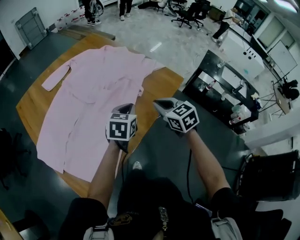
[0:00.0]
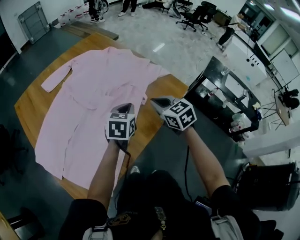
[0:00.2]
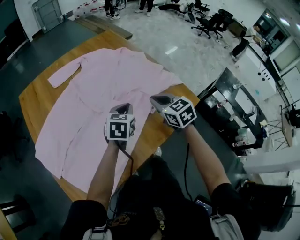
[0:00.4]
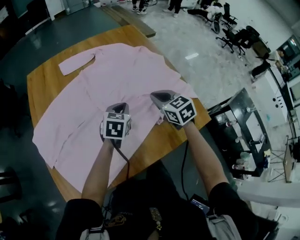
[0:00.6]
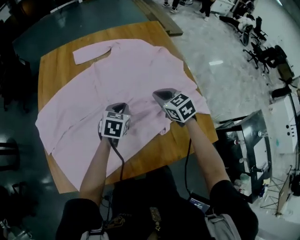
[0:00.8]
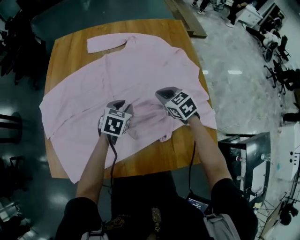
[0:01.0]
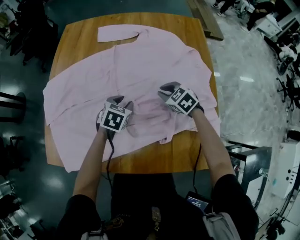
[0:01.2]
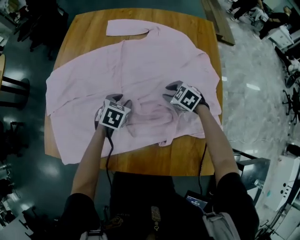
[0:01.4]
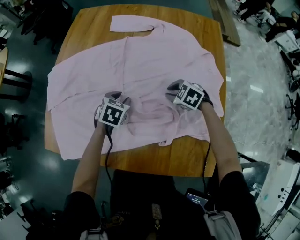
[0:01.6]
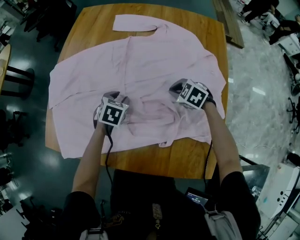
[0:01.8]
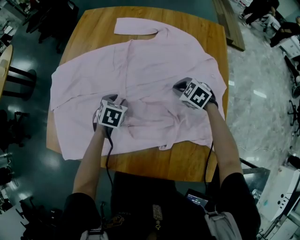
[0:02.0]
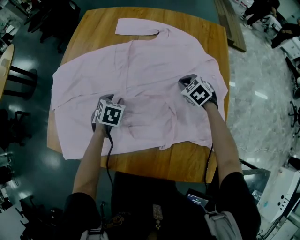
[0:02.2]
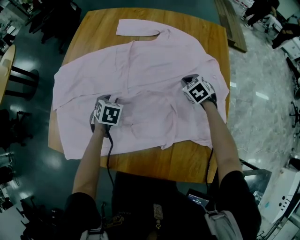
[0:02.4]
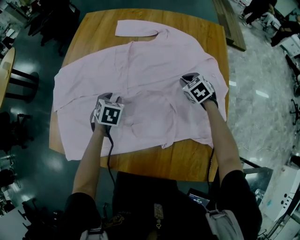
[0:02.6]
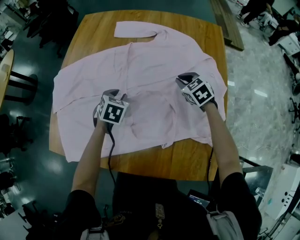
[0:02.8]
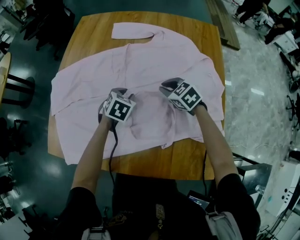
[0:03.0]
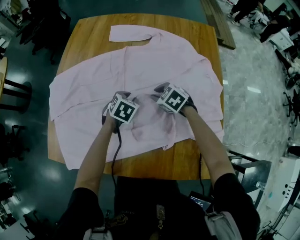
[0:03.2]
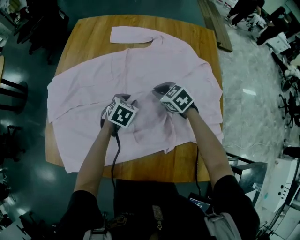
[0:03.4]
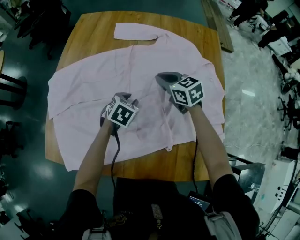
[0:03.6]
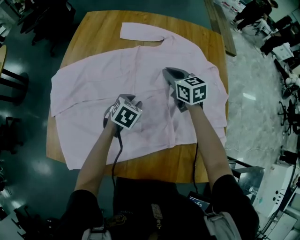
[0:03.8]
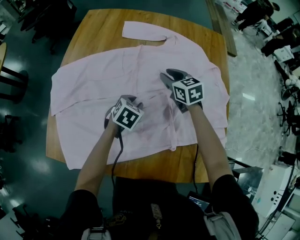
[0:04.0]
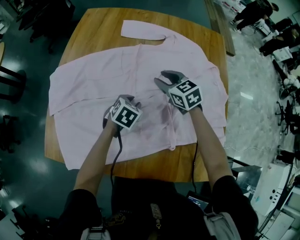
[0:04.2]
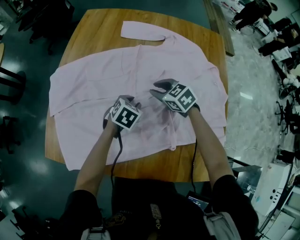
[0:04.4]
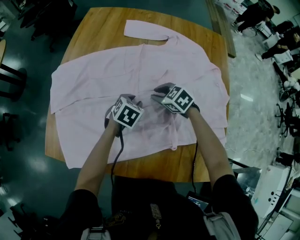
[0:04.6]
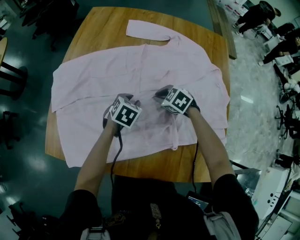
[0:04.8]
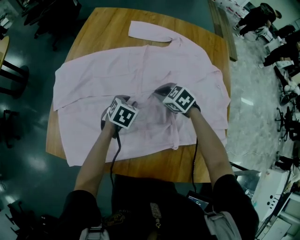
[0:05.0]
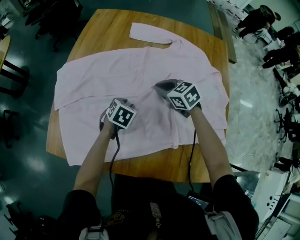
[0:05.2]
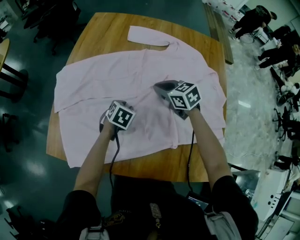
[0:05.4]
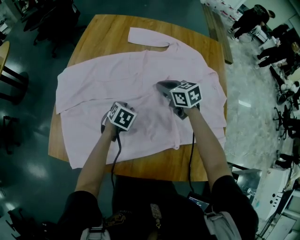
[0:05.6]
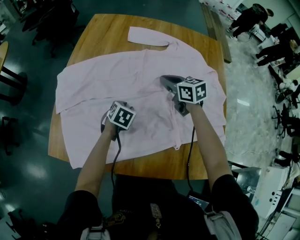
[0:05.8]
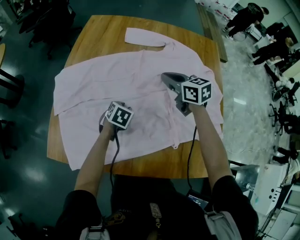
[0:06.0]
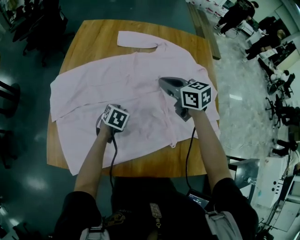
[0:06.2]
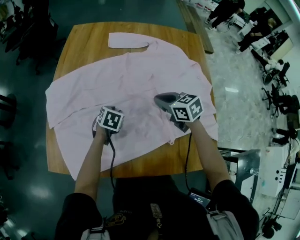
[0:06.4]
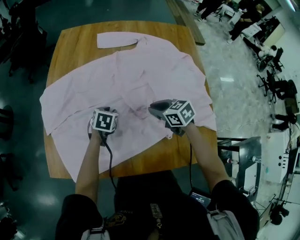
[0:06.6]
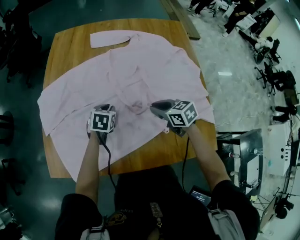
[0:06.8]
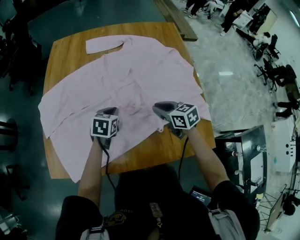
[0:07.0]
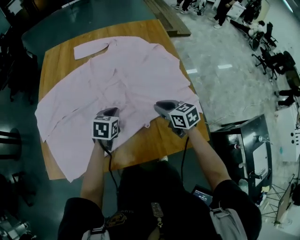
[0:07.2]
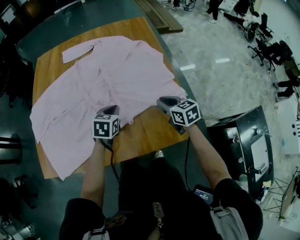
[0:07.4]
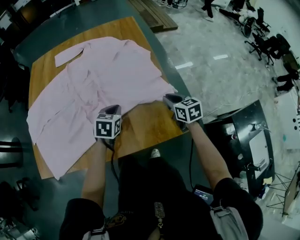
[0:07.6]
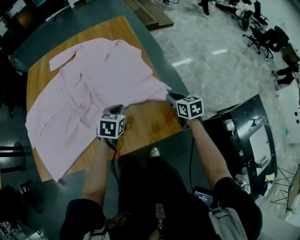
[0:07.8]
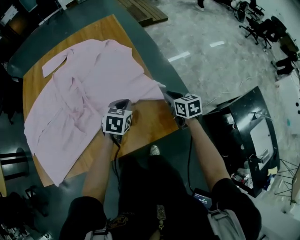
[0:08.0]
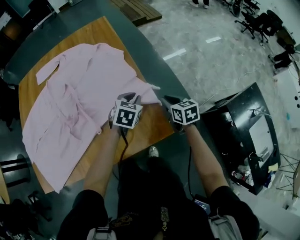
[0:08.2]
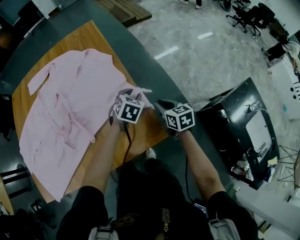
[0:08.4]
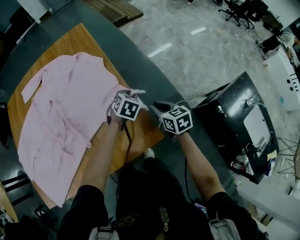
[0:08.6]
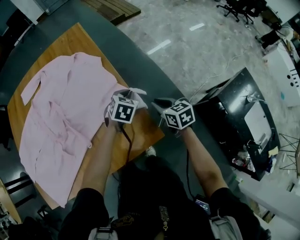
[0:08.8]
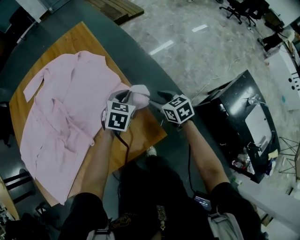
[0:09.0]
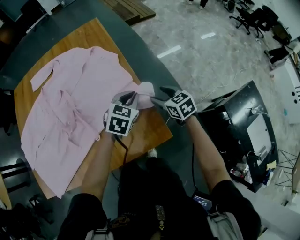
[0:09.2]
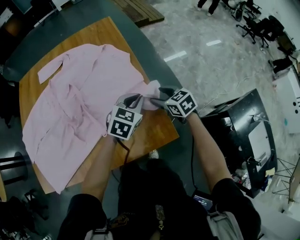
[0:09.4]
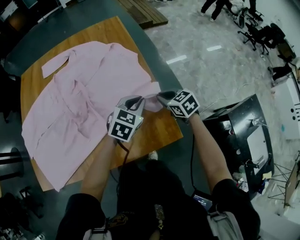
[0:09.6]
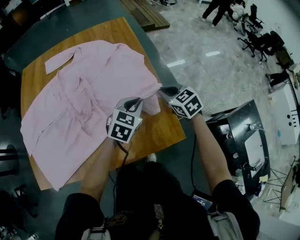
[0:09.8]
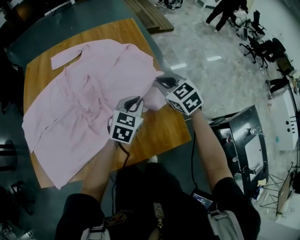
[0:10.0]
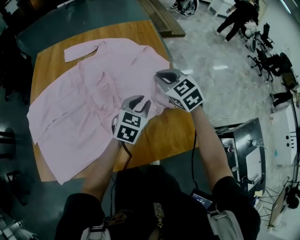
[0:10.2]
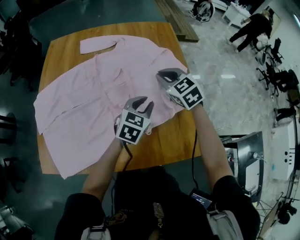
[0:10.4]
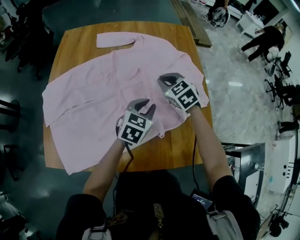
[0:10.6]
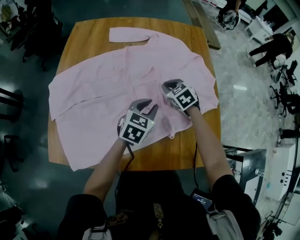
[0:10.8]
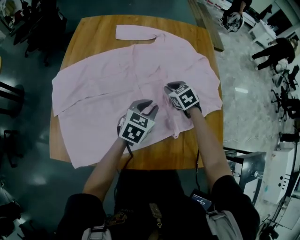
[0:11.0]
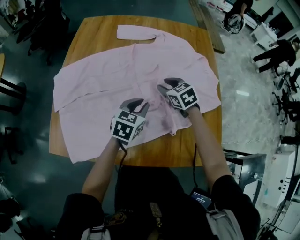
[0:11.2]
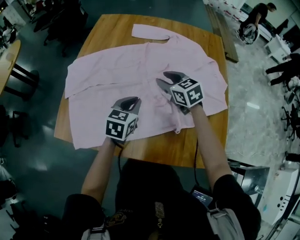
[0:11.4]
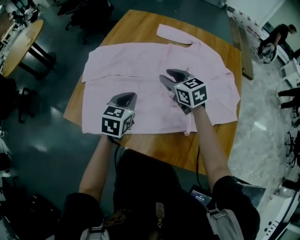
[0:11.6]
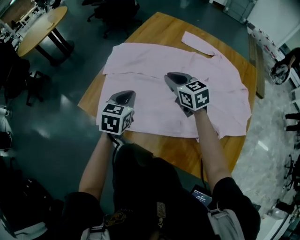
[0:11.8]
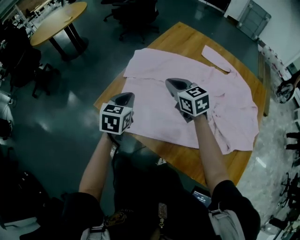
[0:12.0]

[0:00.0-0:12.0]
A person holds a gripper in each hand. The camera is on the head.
0:00.0 to 0:01.6: The left gripper ends up approximately 30 cm from where it was, rotates roughly 60 degrees, and opens its fingers, while the right gripper ends up some 40 cm from where it was, swivels roughly 90 degrees, and opens its fingers.
0:01.6 to 0:03.0: The right gripper moves upward, approximately 5 cm, moves roughly 10 cm to the right and comes back, and swivels roughly 20 degrees; the left gripper travels to the left and back again, some 5 cm each way.
0:03.0 to 0:04.4: The right gripper is displaced to the left by about 10 cm, and goes forward and returns, approximately 10 cm each way.
0:04.4 to 0:06.0: The left gripper shifts about 5 cm to the left, while the right gripper moves upward, some 10 cm, changes its angle by about 30 degrees, and closes its fingers.
0:06.0 to 0:07.6: Both grippers travel together to the right and backward, some 40 cm. The left gripper closes its fingers. Meanwhile the right gripper rotates approximately 30 degrees.
0:07.6 to 0:09.0: The right gripper travels to the right by roughly 15 cm, and opens up. The left gripper heads to the right, covering roughly 25 cm, rotates approximately 30 degrees, and opens and closes again.
0:09.0 to 0:10.4: The left gripper heads to the left, covering roughly 30 cm, and swivels some 20 degrees. Meanwhile the right gripper travels to the left and upward by about 40 cm, rolls counterclockwise, seen from behind, by some 40 degrees, and closes its fingers.
0:10.4 to 0:12.0: The two grippers travel together, approximately 50 cm. The right gripper changes its angle by about 40 degrees, and opens, then closes again; the left gripper swivels approximately 60 degrees.

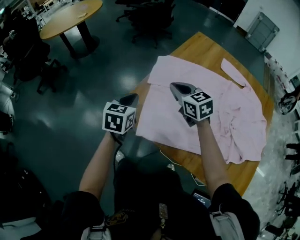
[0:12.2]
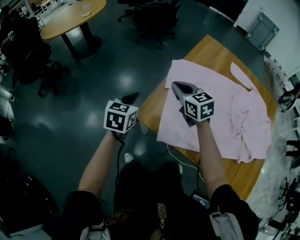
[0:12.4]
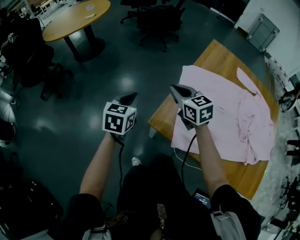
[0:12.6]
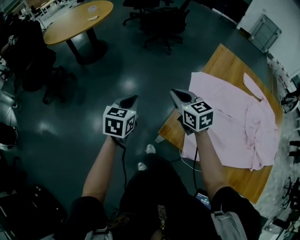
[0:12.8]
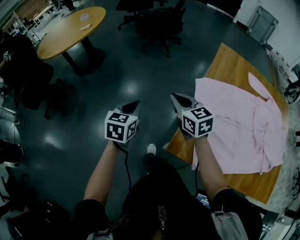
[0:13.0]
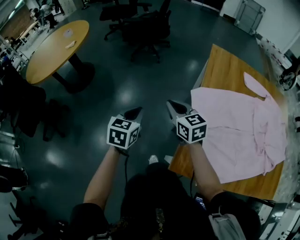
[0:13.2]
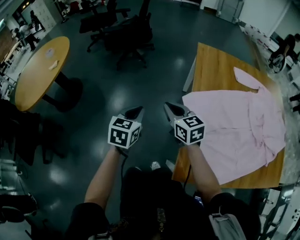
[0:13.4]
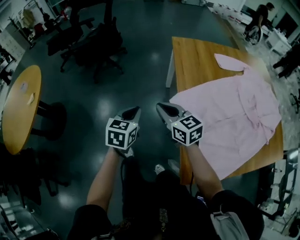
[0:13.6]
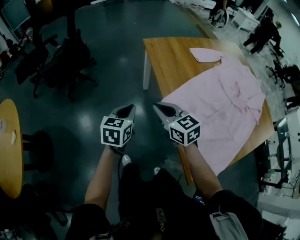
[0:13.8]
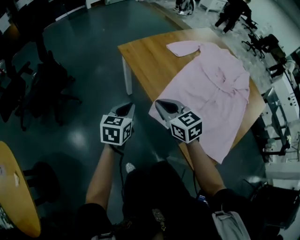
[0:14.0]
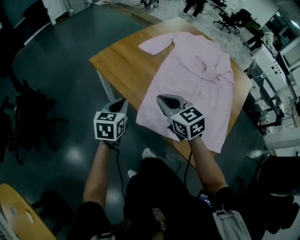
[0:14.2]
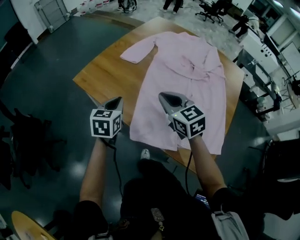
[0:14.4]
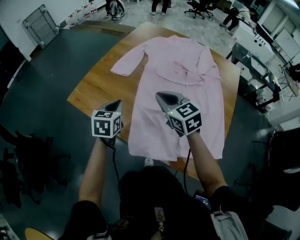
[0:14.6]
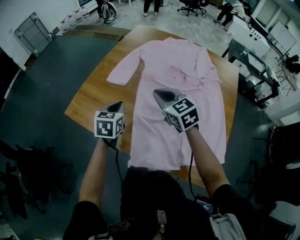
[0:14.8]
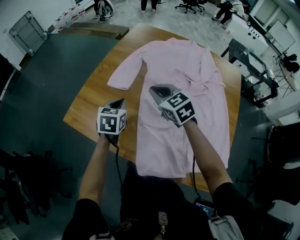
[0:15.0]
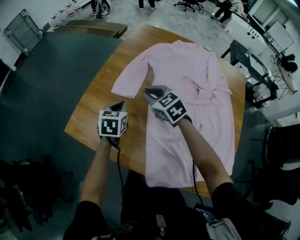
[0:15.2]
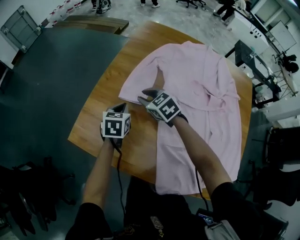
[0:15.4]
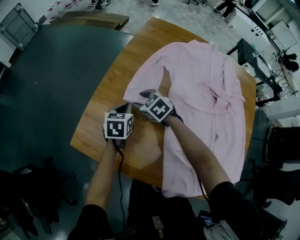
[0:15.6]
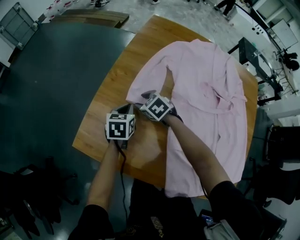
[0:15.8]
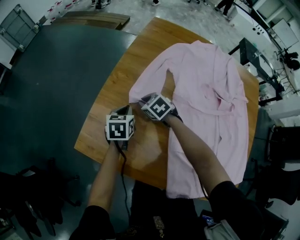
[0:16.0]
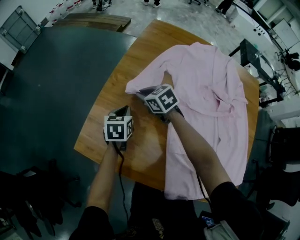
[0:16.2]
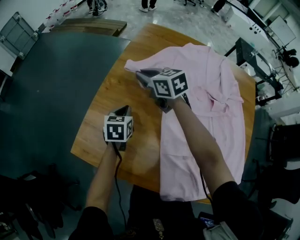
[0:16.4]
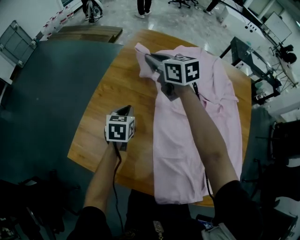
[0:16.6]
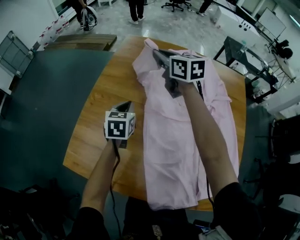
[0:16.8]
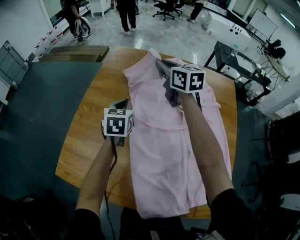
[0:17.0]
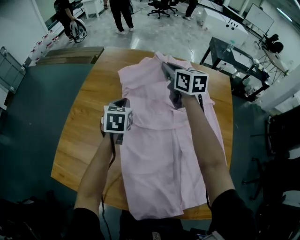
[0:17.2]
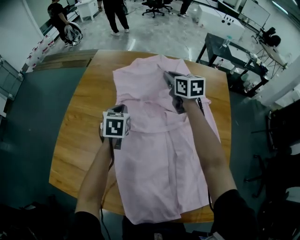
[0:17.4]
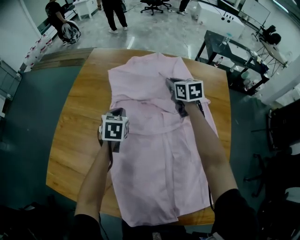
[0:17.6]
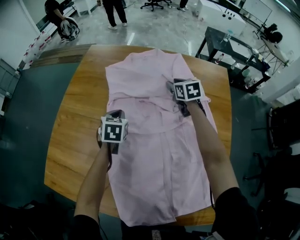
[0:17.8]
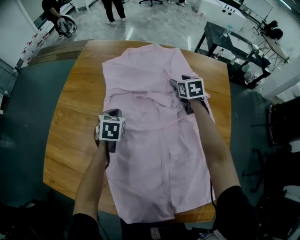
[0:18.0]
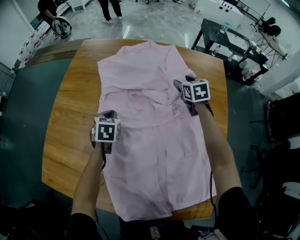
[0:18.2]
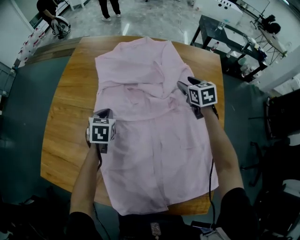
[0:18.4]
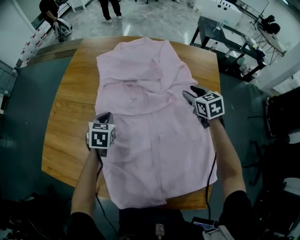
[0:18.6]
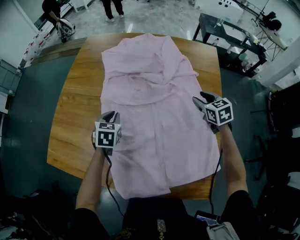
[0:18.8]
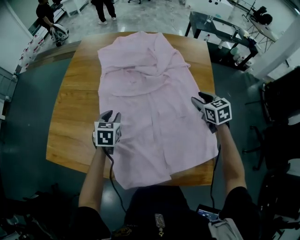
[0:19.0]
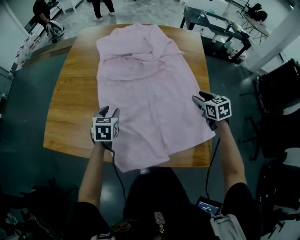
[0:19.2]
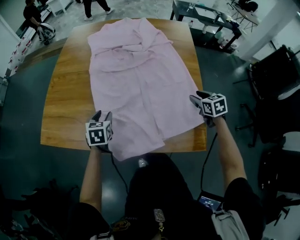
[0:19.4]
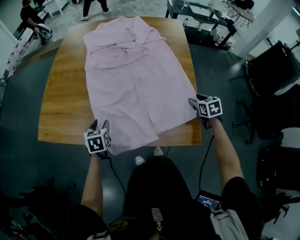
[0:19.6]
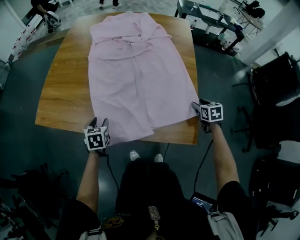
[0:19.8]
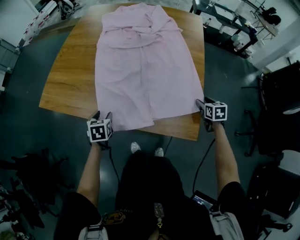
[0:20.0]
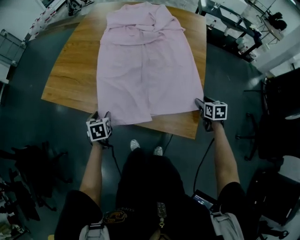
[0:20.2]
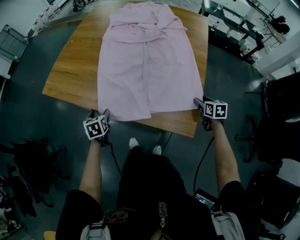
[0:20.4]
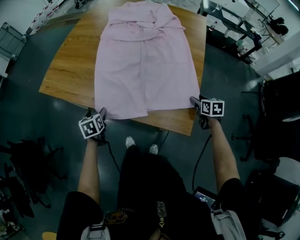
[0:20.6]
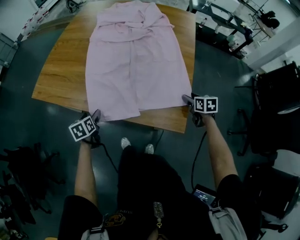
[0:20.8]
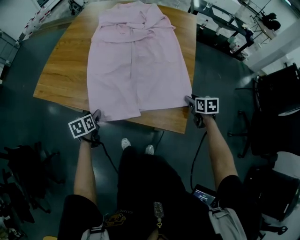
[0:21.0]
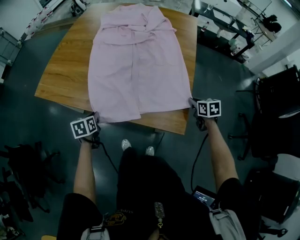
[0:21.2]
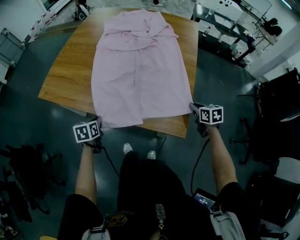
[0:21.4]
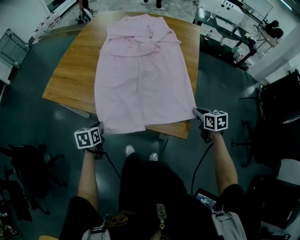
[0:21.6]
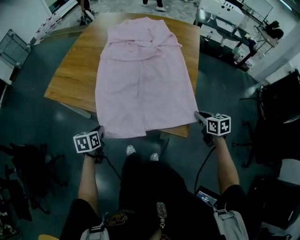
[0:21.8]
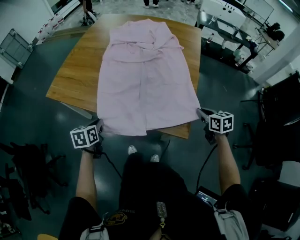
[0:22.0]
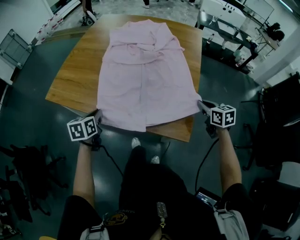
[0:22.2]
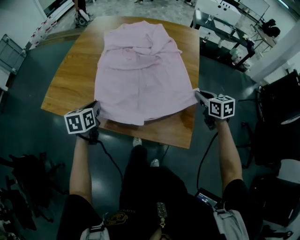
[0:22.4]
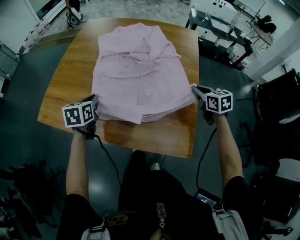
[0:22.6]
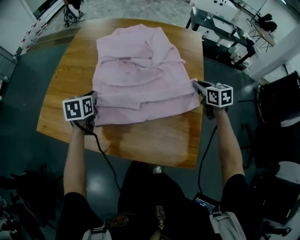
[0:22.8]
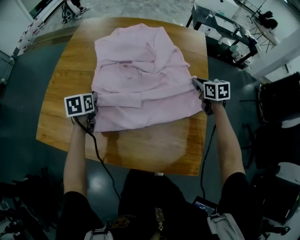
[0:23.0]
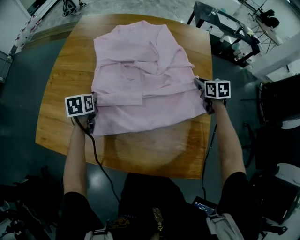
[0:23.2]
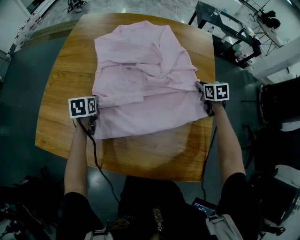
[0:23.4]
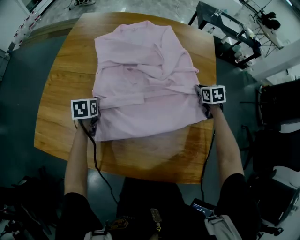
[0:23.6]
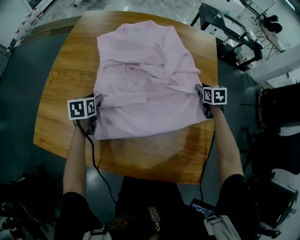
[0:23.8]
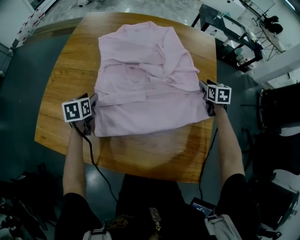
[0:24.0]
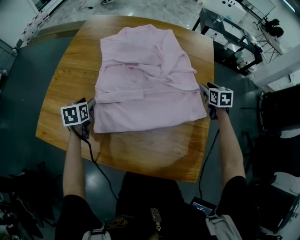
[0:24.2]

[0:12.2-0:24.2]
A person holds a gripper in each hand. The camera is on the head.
0:12.2 to 0:13.8: The right gripper shifts by some 35 cm, and swivels some 50 degrees. The left gripper changes place by some 50 cm, and rotates about 50 degrees.
0:13.8 to 0:15.2: Both grippers are carried about 50 cm. The left gripper rotates some 40 degrees. The right gripper swivels approximately 40 degrees.
0:15.2 to 0:16.6: The left gripper goes approximately 10 cm forward; the right gripper is displaced forward and upward by roughly 20 cm, rotates approximately 30 degrees, and opens, then closes once more.
0:16.6 to 0:18.2: The left gripper shifts about 20 cm to the right, while the right gripper shifts roughly 50 cm to the right, changes its angle by approximately 40 degrees, and opens.
0:18.2 to 0:19.8: Both grippers are carried backward, roughly 50 cm. The left gripper opens up.
0:19.8 to 0:21.2: The left gripper travels backward by roughly 10 cm, rotates about 20 degrees, and closes. The right gripper closes.
0:21.2 to 0:22.6: The grippers both shift forward and upward by roughly 25 cm.
0:22.6 to 0:24.2: The right gripper moves forward, some 20 cm, and opens its fingers. The left gripper travels forward, downward and to the left by some 20 cm, and opens up.
